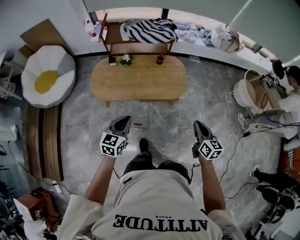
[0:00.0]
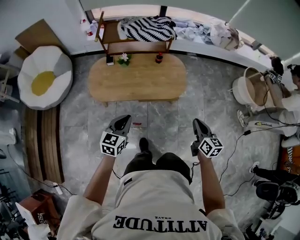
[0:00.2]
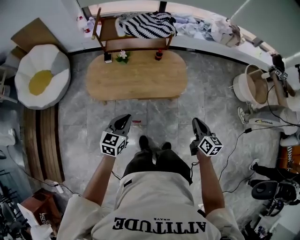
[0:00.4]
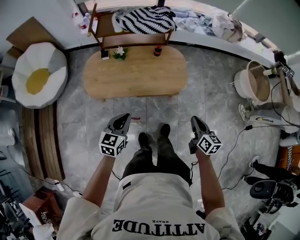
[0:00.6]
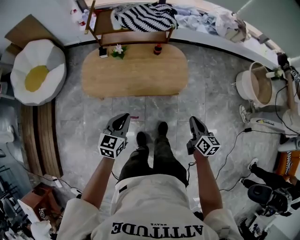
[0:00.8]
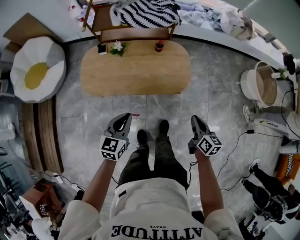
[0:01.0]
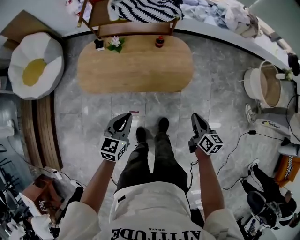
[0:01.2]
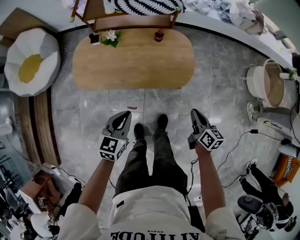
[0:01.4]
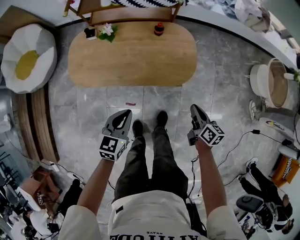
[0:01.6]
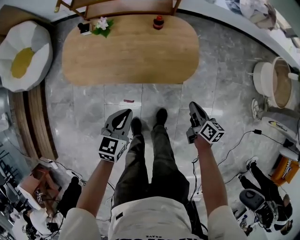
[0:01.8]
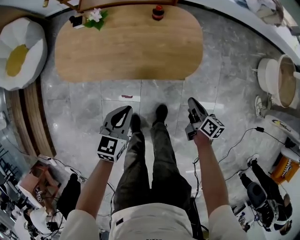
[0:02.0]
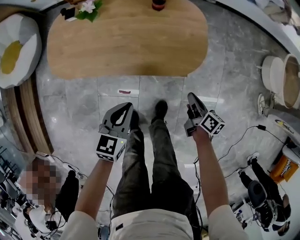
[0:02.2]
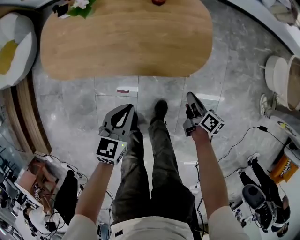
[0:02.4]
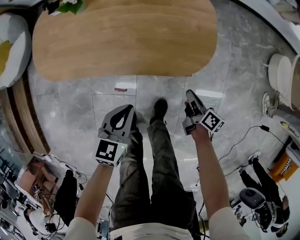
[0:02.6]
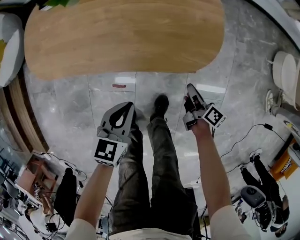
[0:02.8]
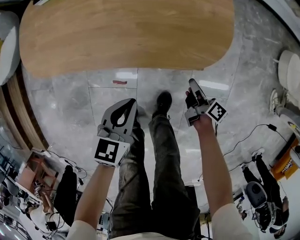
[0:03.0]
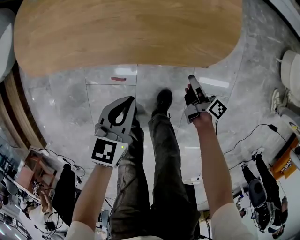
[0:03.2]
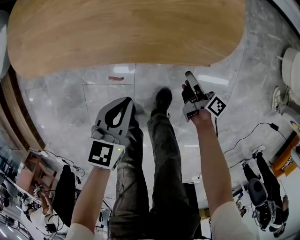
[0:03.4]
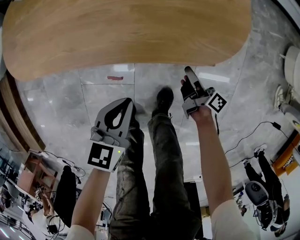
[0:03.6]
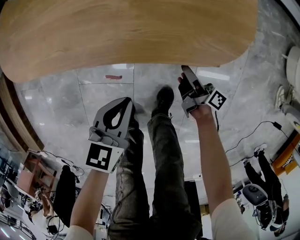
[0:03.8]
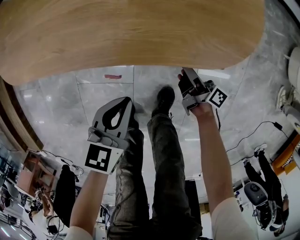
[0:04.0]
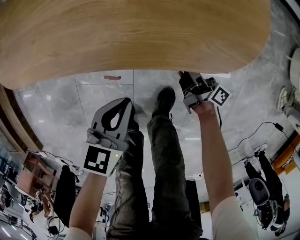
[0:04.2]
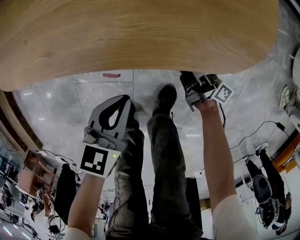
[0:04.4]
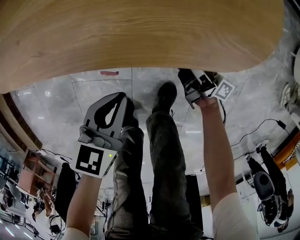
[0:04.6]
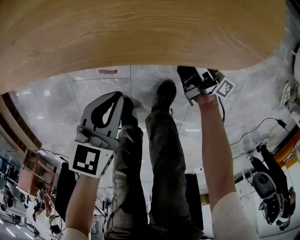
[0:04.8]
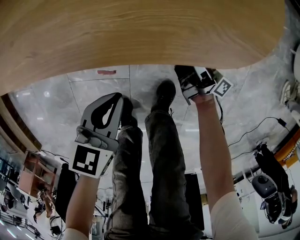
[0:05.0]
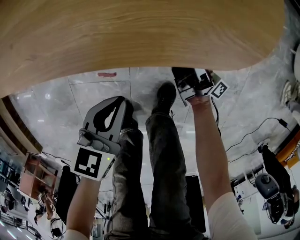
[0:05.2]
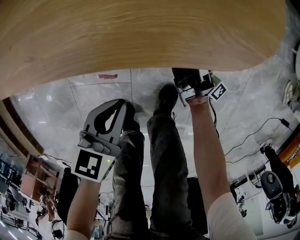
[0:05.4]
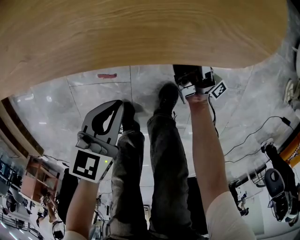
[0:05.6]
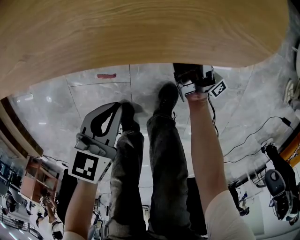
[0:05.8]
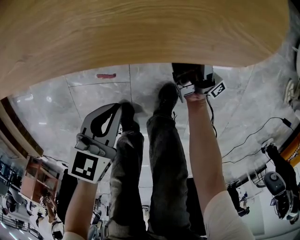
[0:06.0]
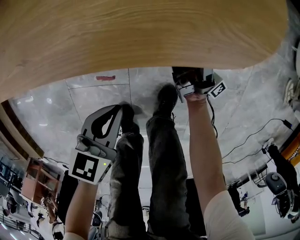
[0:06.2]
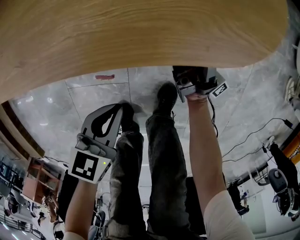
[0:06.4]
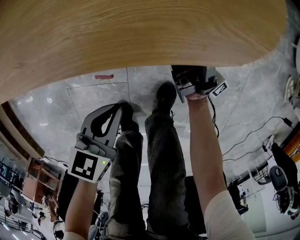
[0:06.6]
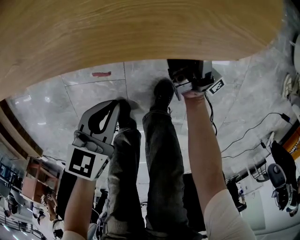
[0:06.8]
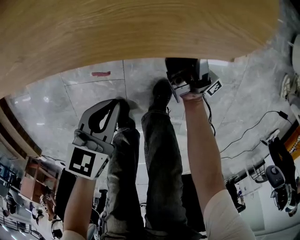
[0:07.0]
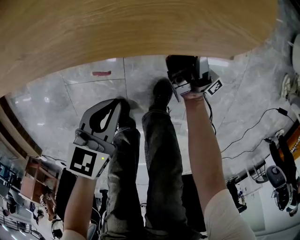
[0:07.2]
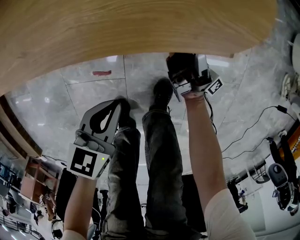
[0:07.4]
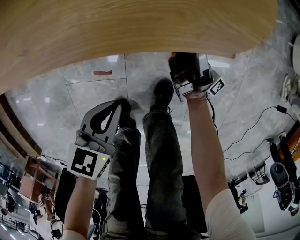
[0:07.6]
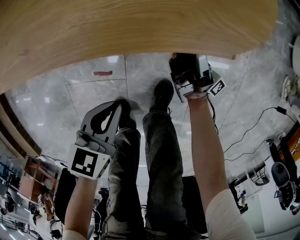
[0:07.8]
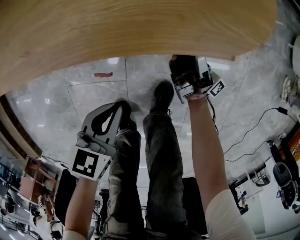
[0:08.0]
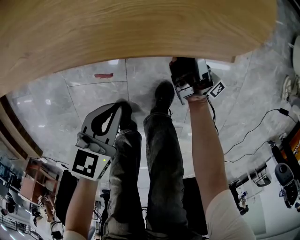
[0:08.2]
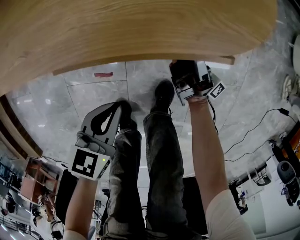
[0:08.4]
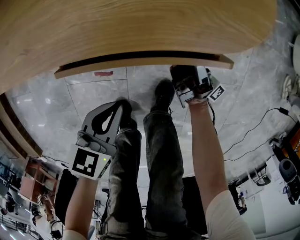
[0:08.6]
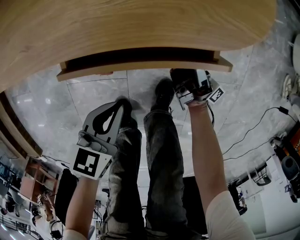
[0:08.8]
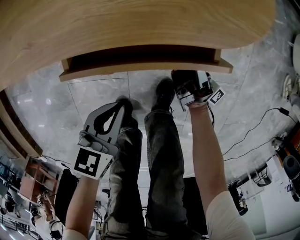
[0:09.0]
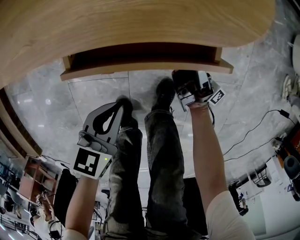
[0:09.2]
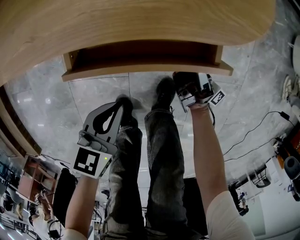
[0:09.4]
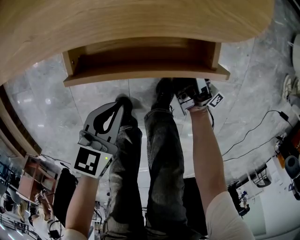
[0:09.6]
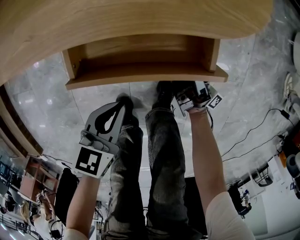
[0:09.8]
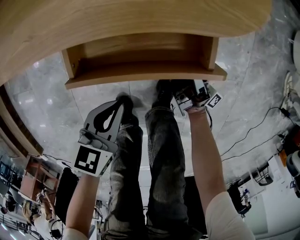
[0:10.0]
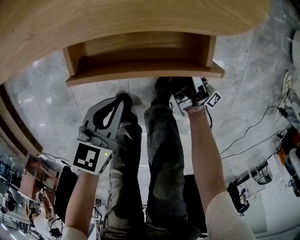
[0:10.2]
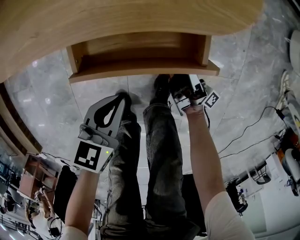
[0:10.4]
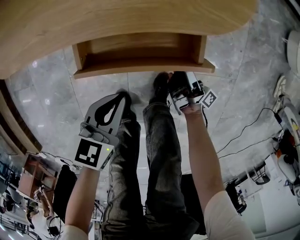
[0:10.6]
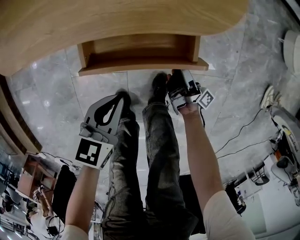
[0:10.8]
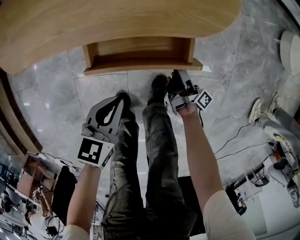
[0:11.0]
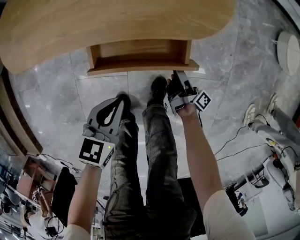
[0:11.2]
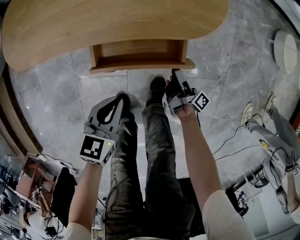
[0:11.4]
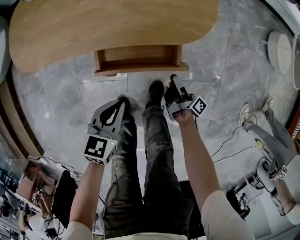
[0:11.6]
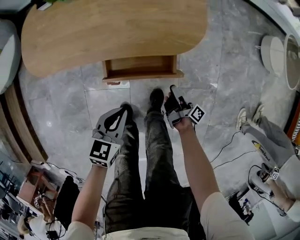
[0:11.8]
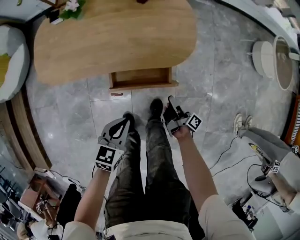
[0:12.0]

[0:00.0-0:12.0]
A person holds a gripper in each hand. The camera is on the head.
0:00.0 to 0:01.6: The right gripper is displaced downward and forward by about 30 cm, and changes its angle by about 20 degrees. Meanwhile the left gripper heads downward, forward and to the right, covering roughly 25 cm.
0:01.6 to 0:03.0: The grippers both shift downward by about 30 cm. The right gripper turns by some 30 degrees.
0:03.0 to 0:04.4: The right gripper goes some 15 cm downward and to the left, swivels approximately 30 degrees, and opens its fingers, while the left gripper moves downward, approximately 15 cm.
0:04.4 to 0:06.0: The left gripper changes place by some 5 cm, while the right gripper changes its angle by about 30 degrees.
0:06.0 to 0:07.6: The grippers make only small movements.
0:07.6 to 0:09.0: The right gripper moves some 5 cm.
0:09.0 to 0:10.4: The right gripper heads backward, covering roughly 5 cm.
0:10.4 to 0:12.0: Both grippers move upward, some 20 cm. The right gripper turns by approximately 20 degrees, and closes.

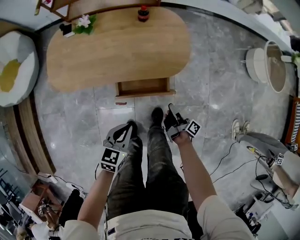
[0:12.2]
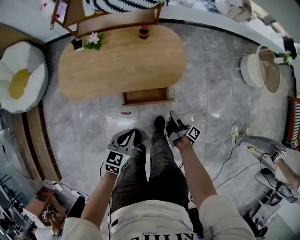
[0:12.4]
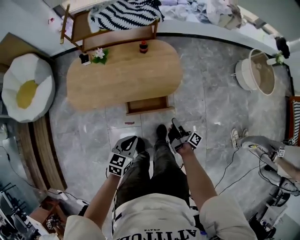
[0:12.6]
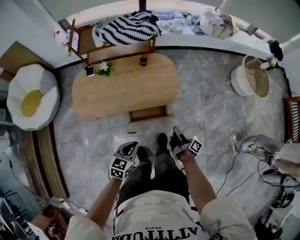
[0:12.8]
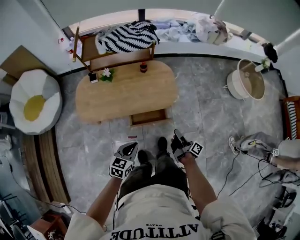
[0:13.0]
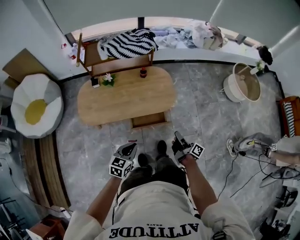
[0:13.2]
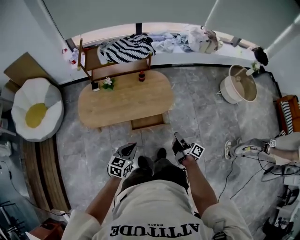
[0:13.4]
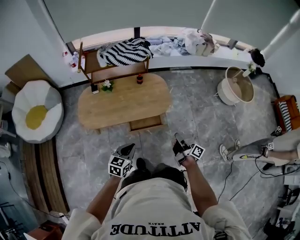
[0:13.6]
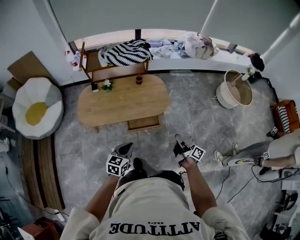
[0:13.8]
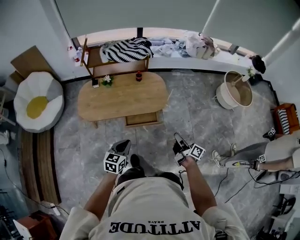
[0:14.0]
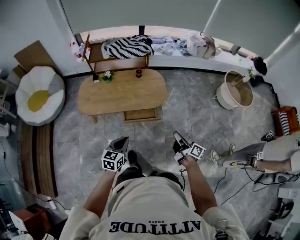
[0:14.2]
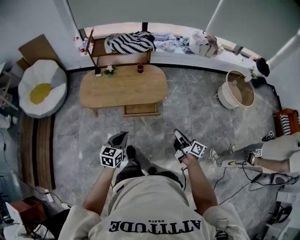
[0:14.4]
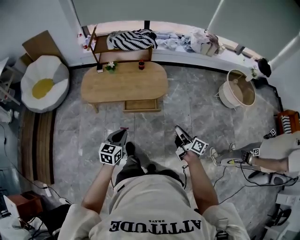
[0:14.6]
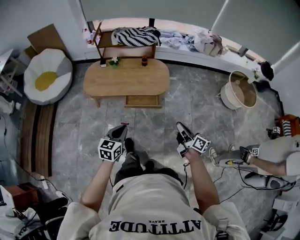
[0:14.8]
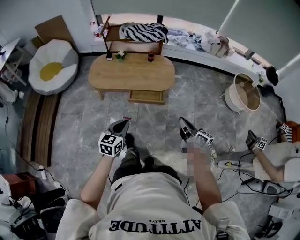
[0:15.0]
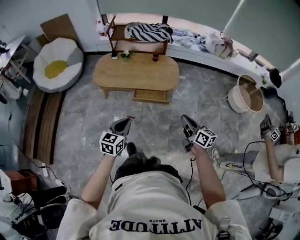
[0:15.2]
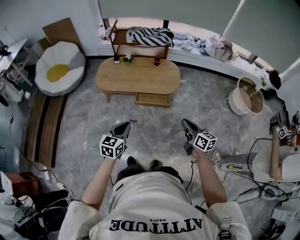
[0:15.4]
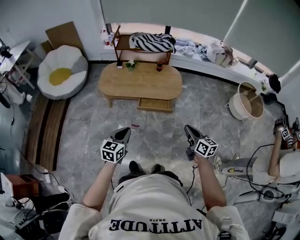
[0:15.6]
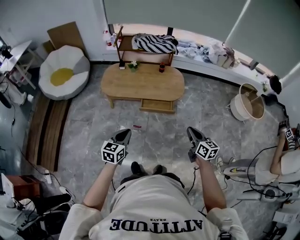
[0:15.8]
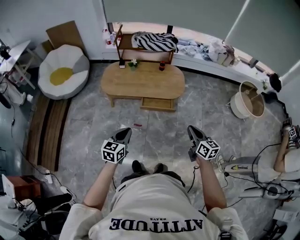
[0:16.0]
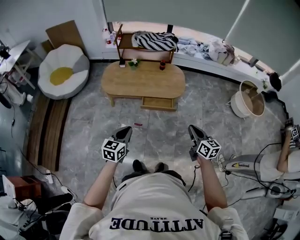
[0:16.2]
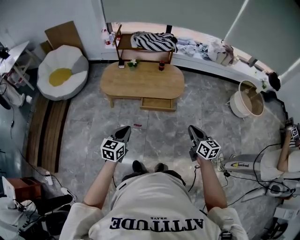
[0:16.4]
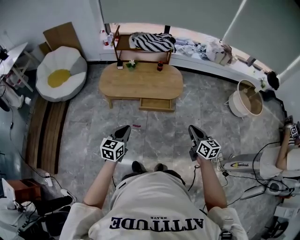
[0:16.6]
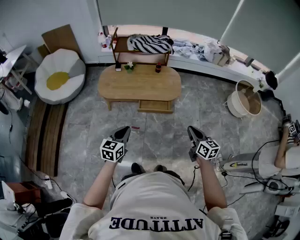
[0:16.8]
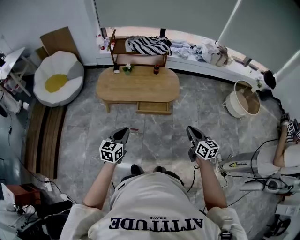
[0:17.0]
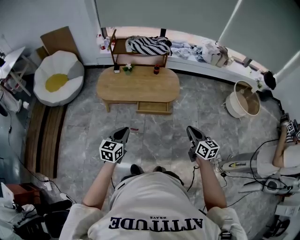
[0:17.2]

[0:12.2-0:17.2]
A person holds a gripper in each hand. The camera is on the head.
0:12.2 to 0:13.8: Both grippers travel together upward and backward, about 30 cm. The right gripper swivels about 20 degrees.
0:13.8 to 0:15.6: The right gripper goes about 20 cm backward and upward, and rolls counterclockwise, seen from behind, by some 40 degrees, while the left gripper goes approximately 20 cm backward.
0:15.6 to 0:17.2: The grippers stay close to where they were, moving slightly.

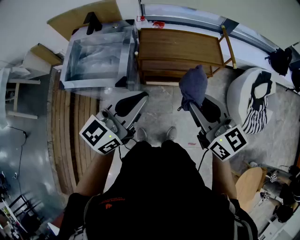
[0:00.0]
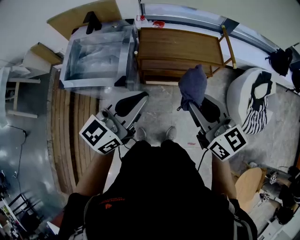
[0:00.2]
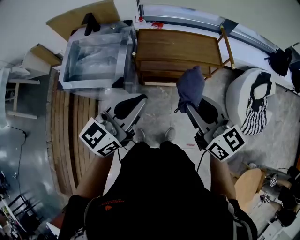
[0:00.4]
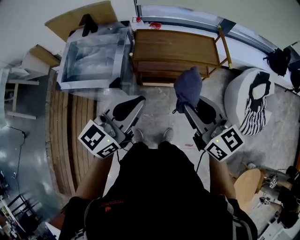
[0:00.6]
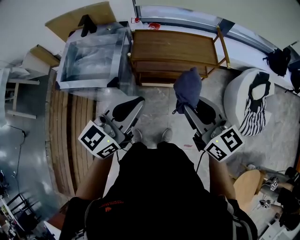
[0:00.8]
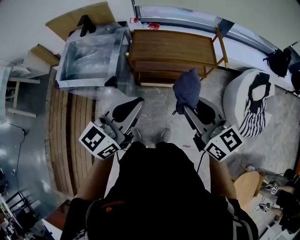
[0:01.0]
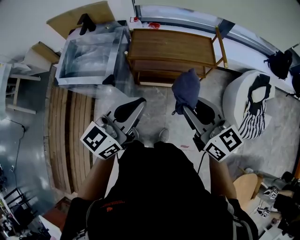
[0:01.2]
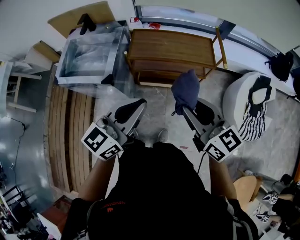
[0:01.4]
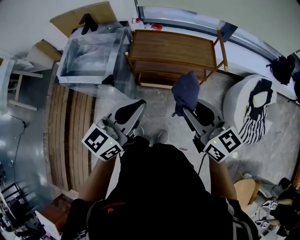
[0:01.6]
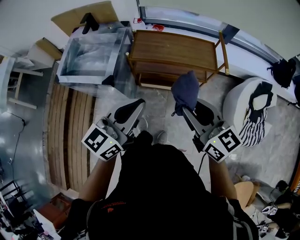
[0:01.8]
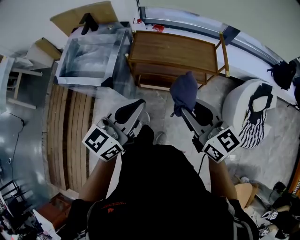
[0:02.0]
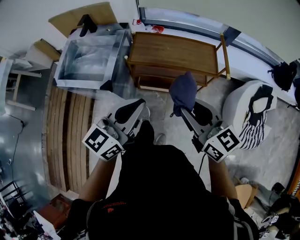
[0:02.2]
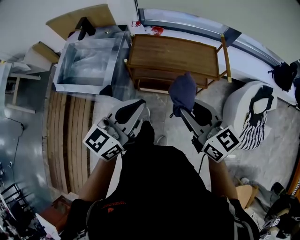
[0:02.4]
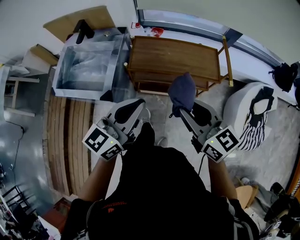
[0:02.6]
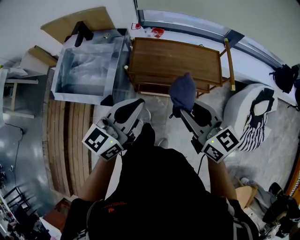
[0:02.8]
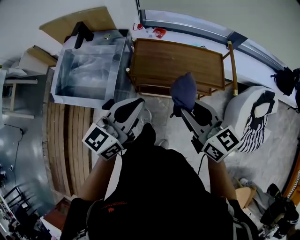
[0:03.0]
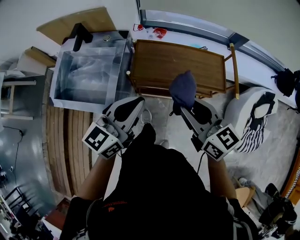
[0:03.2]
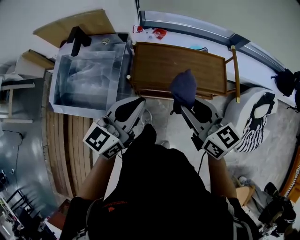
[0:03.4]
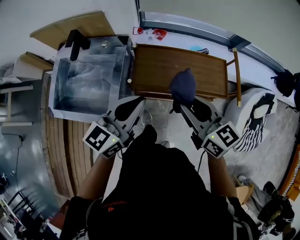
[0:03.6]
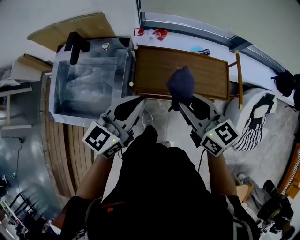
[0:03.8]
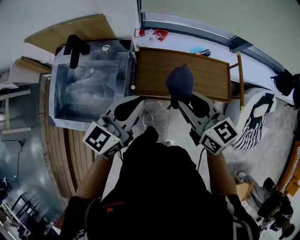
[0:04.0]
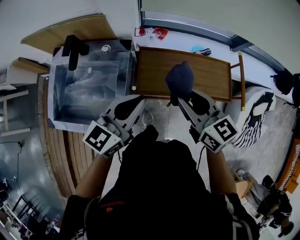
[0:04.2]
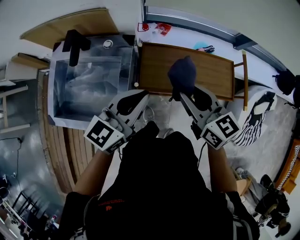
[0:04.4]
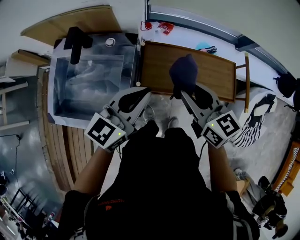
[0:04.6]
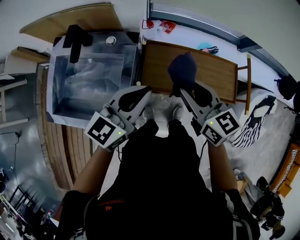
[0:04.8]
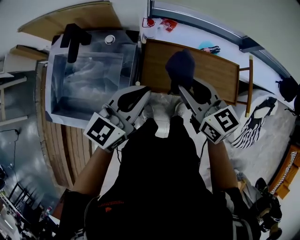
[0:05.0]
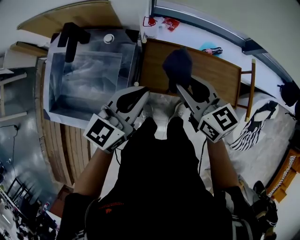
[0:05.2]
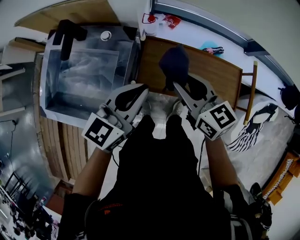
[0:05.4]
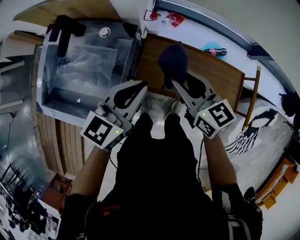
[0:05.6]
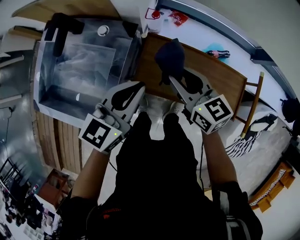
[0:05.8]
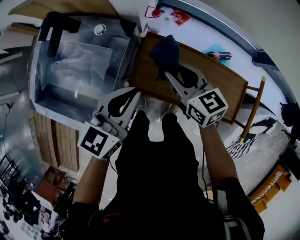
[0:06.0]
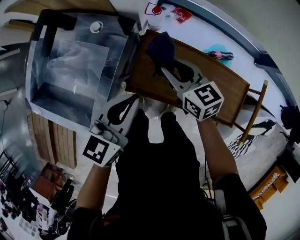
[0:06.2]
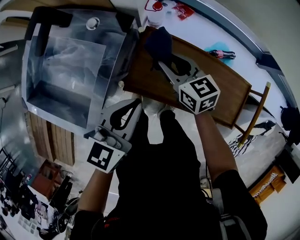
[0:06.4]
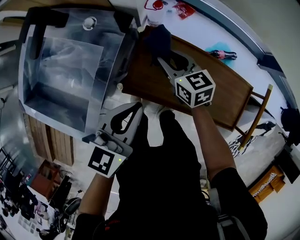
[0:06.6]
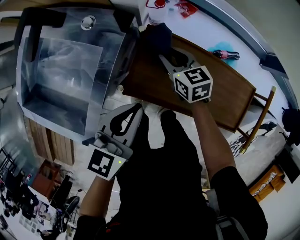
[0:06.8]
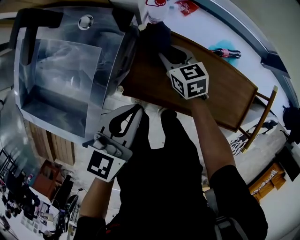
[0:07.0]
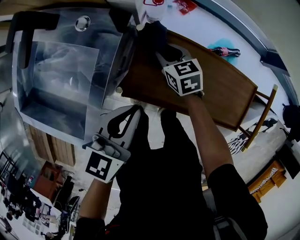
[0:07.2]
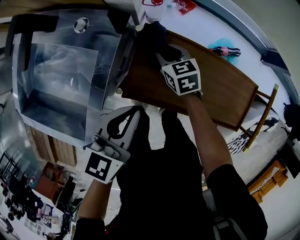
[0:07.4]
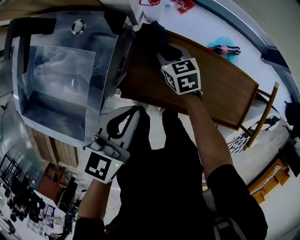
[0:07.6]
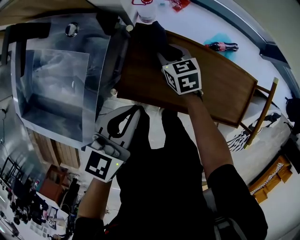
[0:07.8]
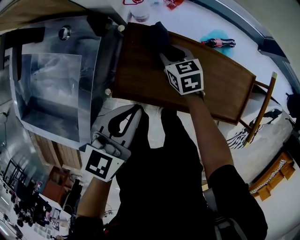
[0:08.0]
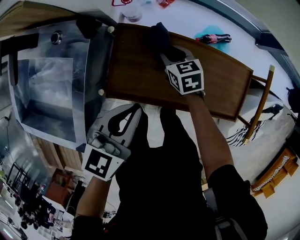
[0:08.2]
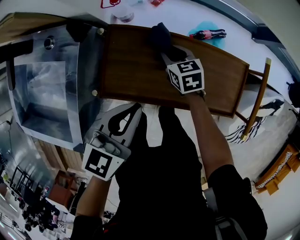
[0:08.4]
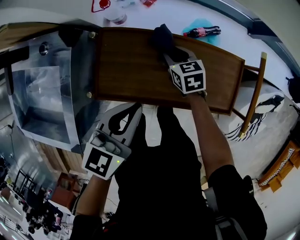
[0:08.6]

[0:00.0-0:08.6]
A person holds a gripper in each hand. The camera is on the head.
0:00.0 to 0:01.4: The two grippers go roughly 10 cm to the right.
0:01.4 to 0:02.8: Both grippers travel together forward, some 15 cm.
0:02.8 to 0:04.4: Both grippers move forward and to the left, some 25 cm.
0:04.4 to 0:05.8: Both grippers travel together downward and forward, approximately 15 cm.
0:05.8 to 0:07.2: The left gripper goes roughly 10 cm downward, while the right gripper heads downward, covering approximately 25 cm, and rotates some 20 degrees.
0:07.2 to 0:08.6: The two grippers go roughly 15 cm to the right.
